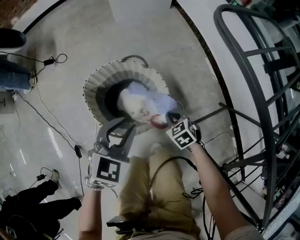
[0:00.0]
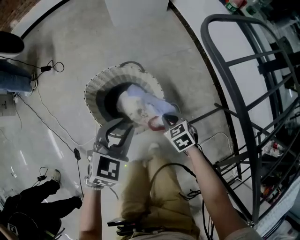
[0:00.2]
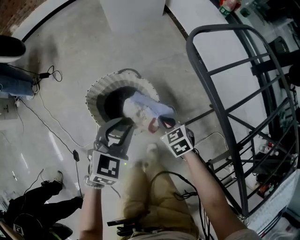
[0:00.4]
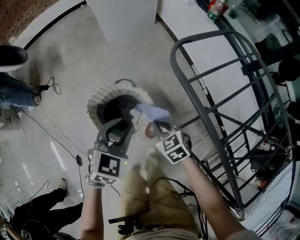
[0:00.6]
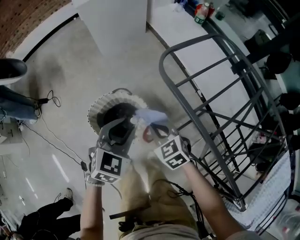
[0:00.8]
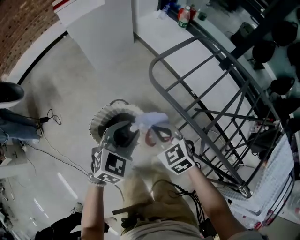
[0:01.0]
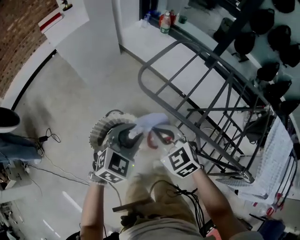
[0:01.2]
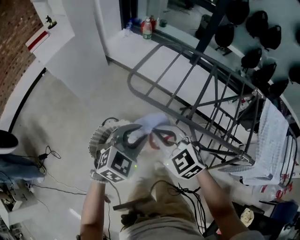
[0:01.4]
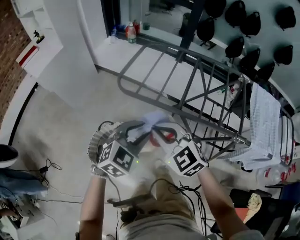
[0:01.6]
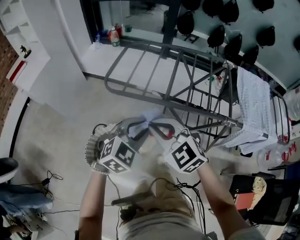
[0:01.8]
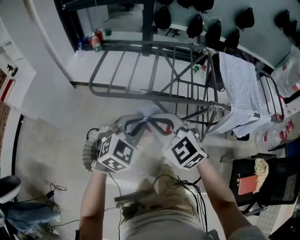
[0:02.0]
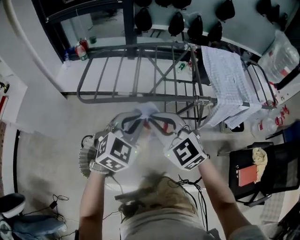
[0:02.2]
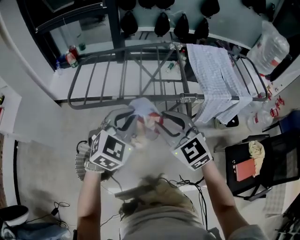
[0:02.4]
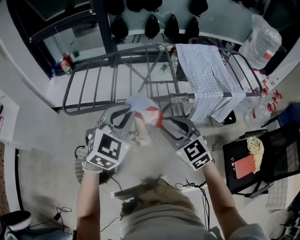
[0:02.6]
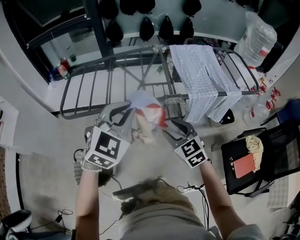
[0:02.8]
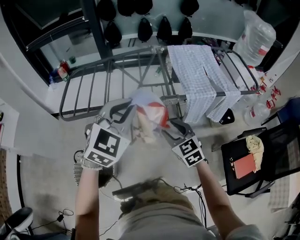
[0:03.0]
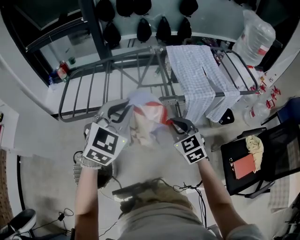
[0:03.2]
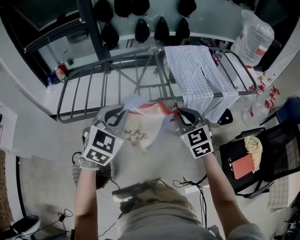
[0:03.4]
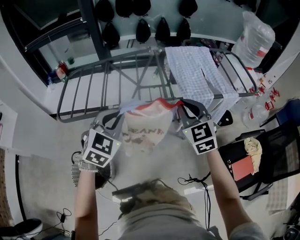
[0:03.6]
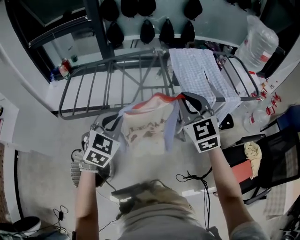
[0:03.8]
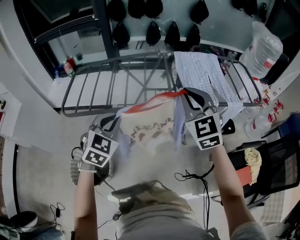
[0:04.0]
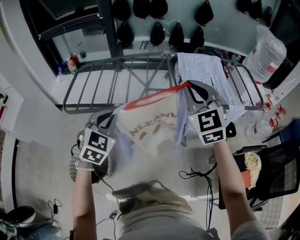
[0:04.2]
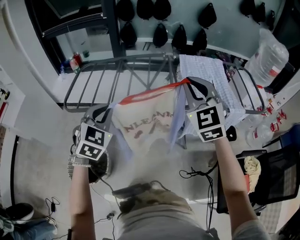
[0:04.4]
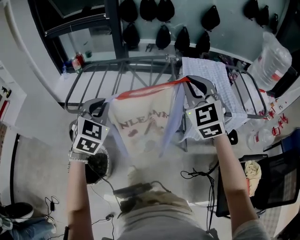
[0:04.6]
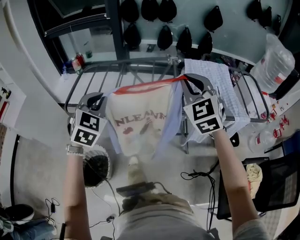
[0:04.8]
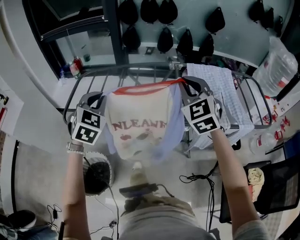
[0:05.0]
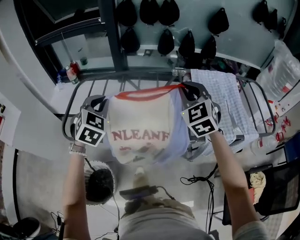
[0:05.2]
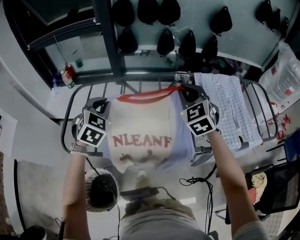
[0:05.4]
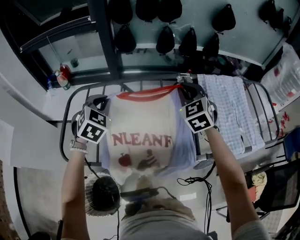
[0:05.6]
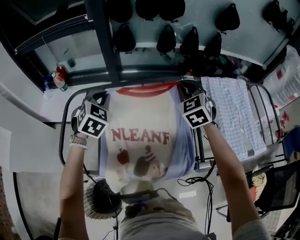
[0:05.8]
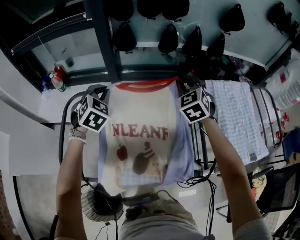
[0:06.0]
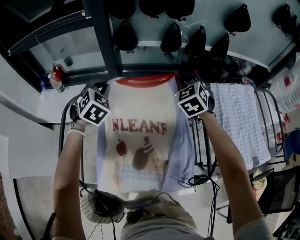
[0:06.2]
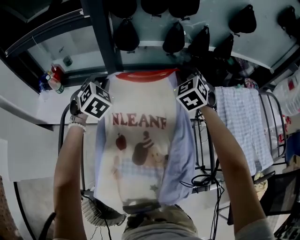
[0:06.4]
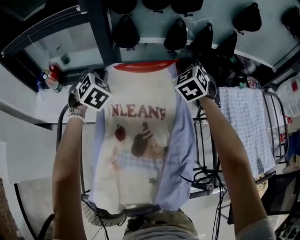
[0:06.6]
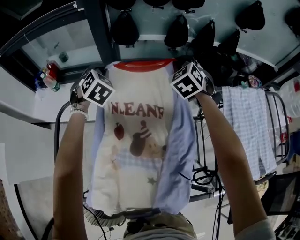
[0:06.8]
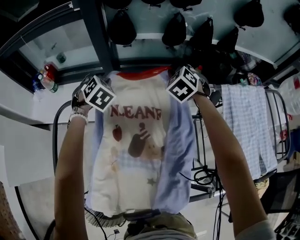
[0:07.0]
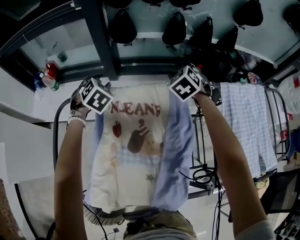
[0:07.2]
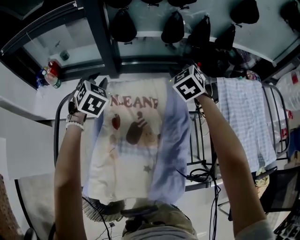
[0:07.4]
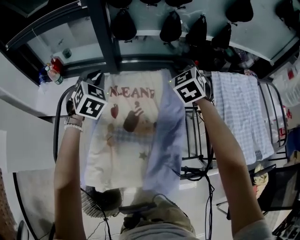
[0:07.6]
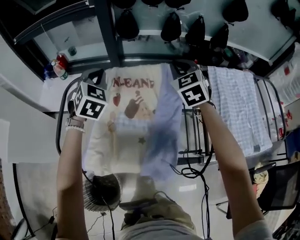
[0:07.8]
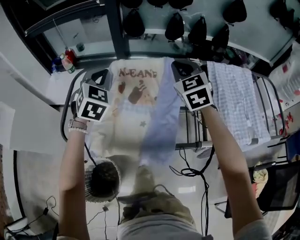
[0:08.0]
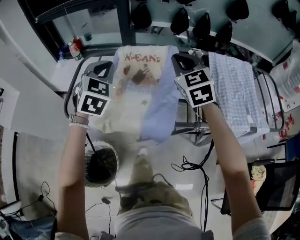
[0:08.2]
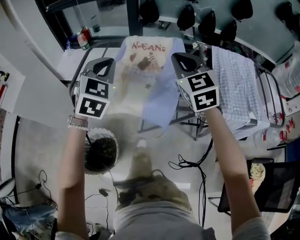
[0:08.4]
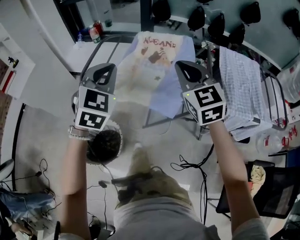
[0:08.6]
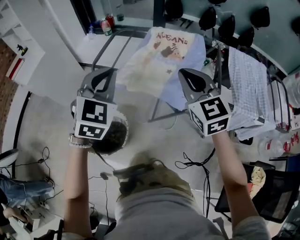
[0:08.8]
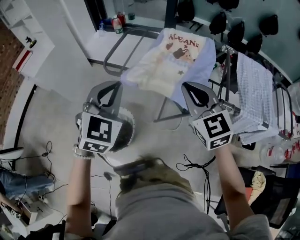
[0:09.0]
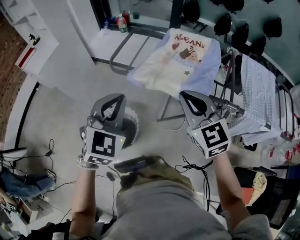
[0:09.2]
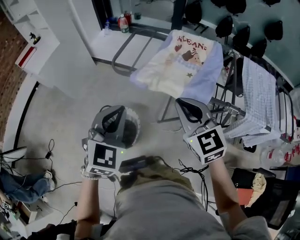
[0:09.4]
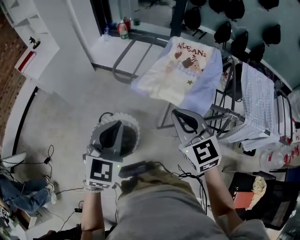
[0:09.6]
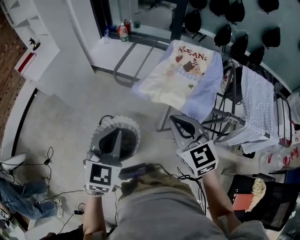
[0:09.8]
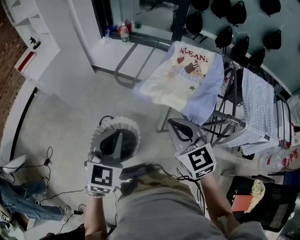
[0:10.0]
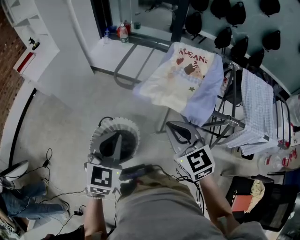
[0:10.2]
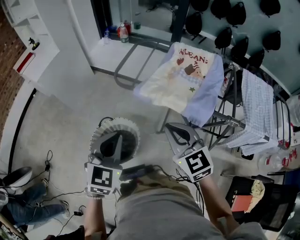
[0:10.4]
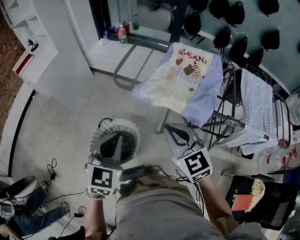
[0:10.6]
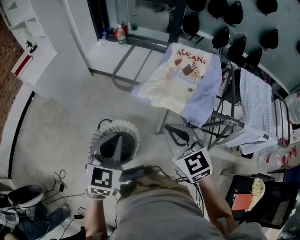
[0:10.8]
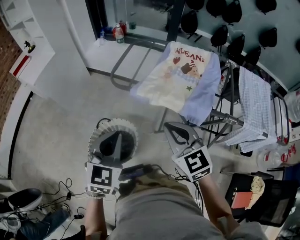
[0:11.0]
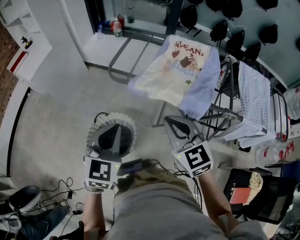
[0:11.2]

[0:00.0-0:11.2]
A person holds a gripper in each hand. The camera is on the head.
0:00.0 to 0:01.6: The left gripper heads upward, covering about 30 cm, and turns by some 60 degrees. Meanwhile the right gripper moves upward, approximately 50 cm, and tips its fingers upward by roughly 30 degrees.
0:01.6 to 0:03.2: The right gripper moves about 5 cm upward and comes back, rotates approximately 50 degrees, and opens, then closes again. Meanwhile the left gripper shifts by approximately 30 cm, changes its angle by some 20 degrees, and closes.
0:03.2 to 0:04.8: The right gripper is displaced upward and forward by about 25 cm, and rotates some 30 degrees. Meanwhile the left gripper goes about 15 cm to the left and forward, and turns by some 30 degrees.
0:04.8 to 0:06.4: The pair of grippers is taken forward, approximately 50 cm. The right gripper turns by some 20 degrees.
0:06.4 to 0:08.0: Both grippers move backward, roughly 20 cm. The right gripper swivels roughly 20 degrees, and opens, then closes once more, while the left gripper opens, then closes once more.
0:08.0 to 0:09.6: The pair of grippers is taken backward and to the left, roughly 50 cm. The right gripper changes its angle by about 30 degrees; the left gripper swivels some 20 degrees.
0:09.6 to 0:11.2: The grippers move only a little.

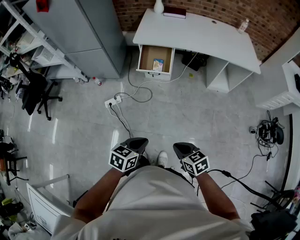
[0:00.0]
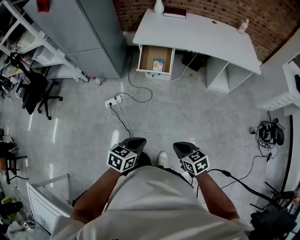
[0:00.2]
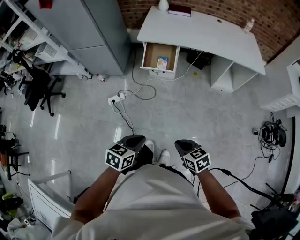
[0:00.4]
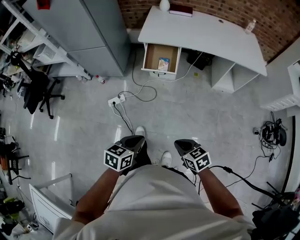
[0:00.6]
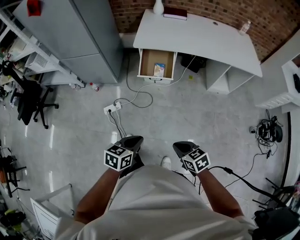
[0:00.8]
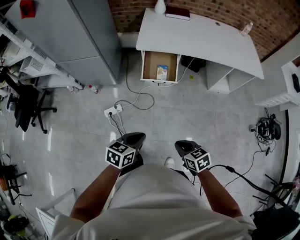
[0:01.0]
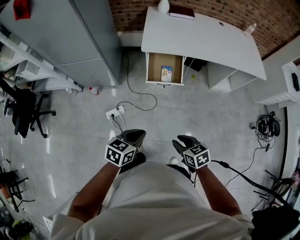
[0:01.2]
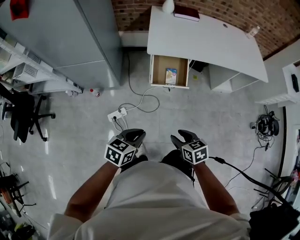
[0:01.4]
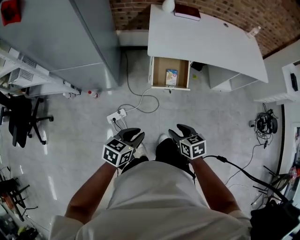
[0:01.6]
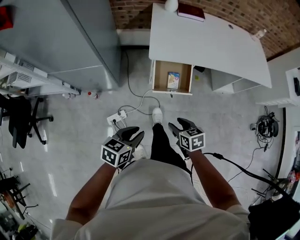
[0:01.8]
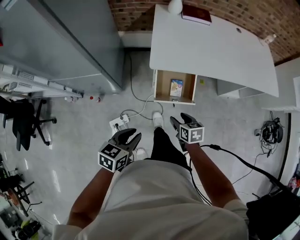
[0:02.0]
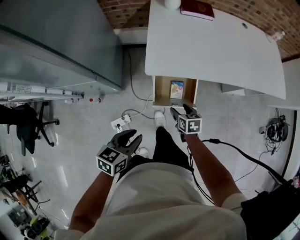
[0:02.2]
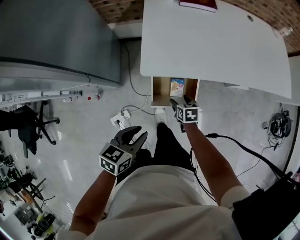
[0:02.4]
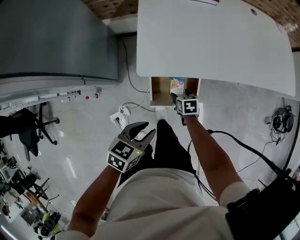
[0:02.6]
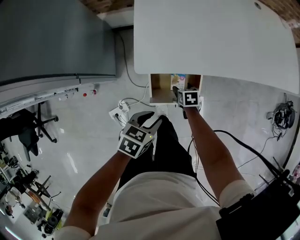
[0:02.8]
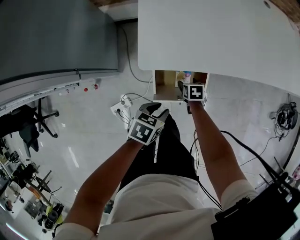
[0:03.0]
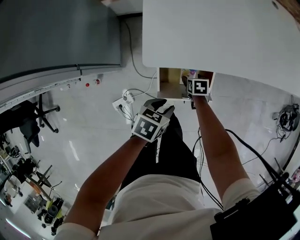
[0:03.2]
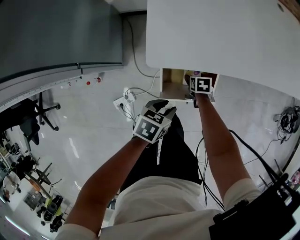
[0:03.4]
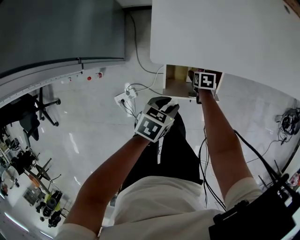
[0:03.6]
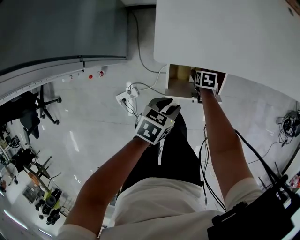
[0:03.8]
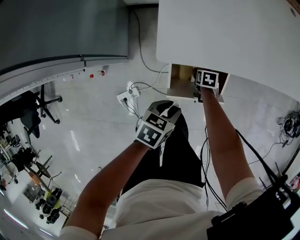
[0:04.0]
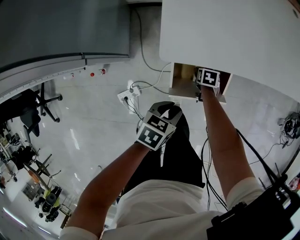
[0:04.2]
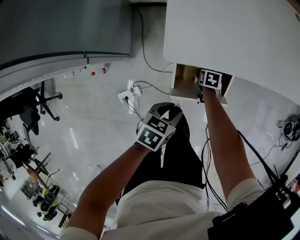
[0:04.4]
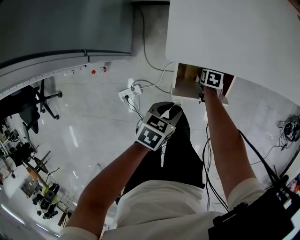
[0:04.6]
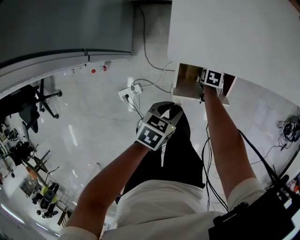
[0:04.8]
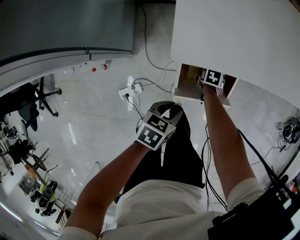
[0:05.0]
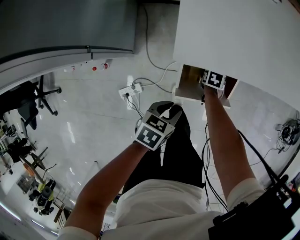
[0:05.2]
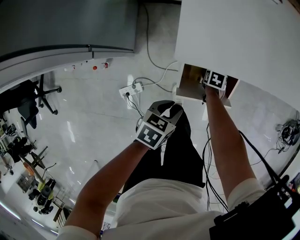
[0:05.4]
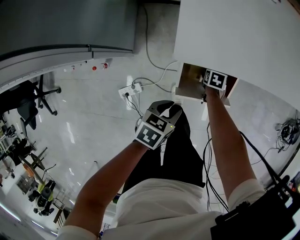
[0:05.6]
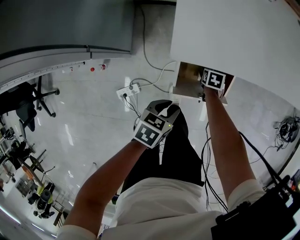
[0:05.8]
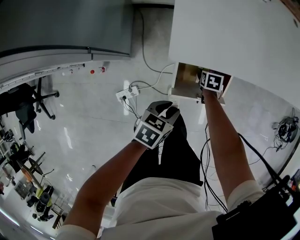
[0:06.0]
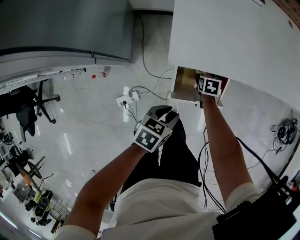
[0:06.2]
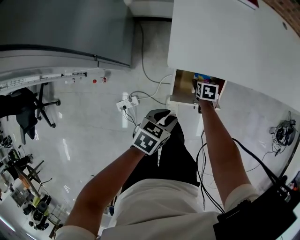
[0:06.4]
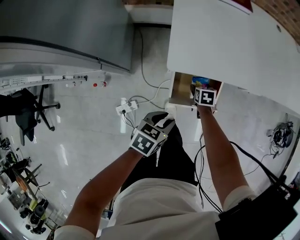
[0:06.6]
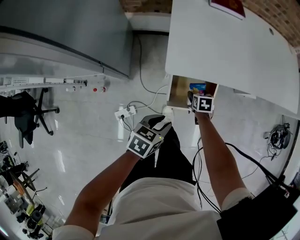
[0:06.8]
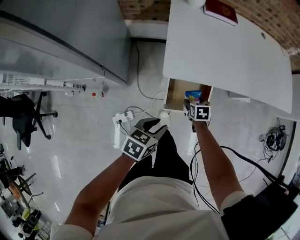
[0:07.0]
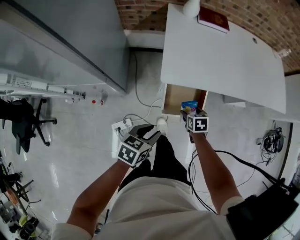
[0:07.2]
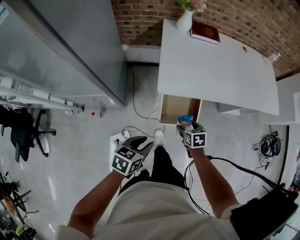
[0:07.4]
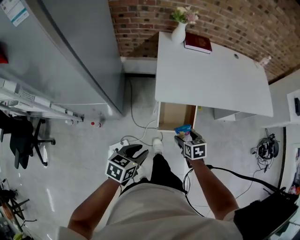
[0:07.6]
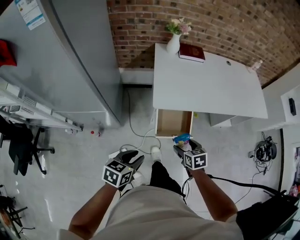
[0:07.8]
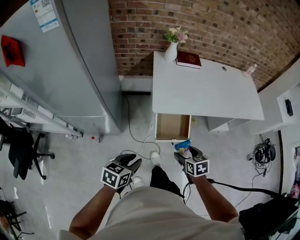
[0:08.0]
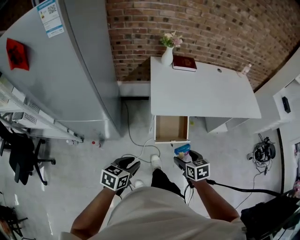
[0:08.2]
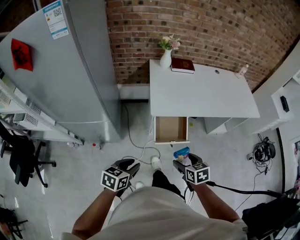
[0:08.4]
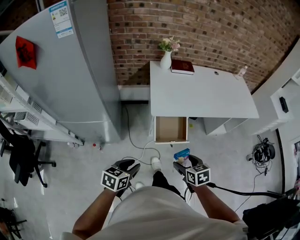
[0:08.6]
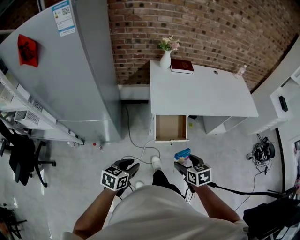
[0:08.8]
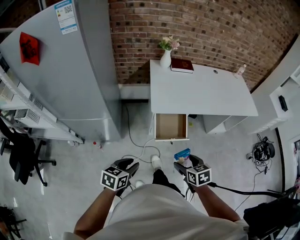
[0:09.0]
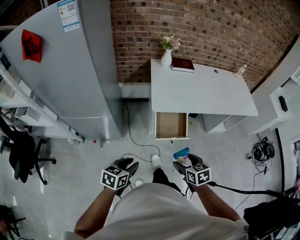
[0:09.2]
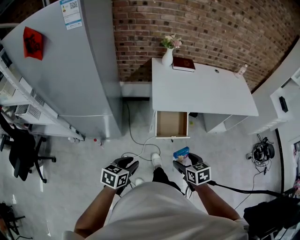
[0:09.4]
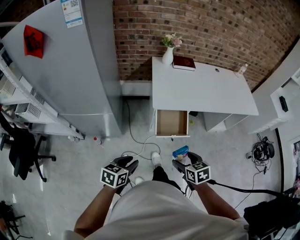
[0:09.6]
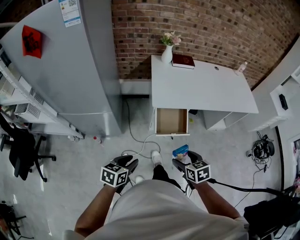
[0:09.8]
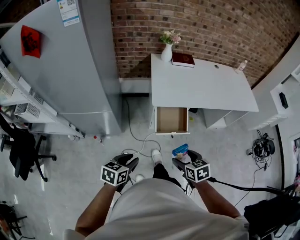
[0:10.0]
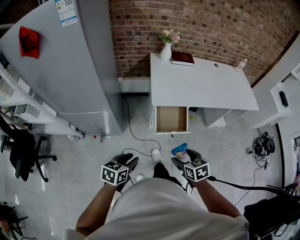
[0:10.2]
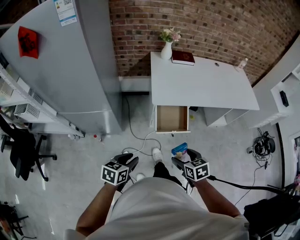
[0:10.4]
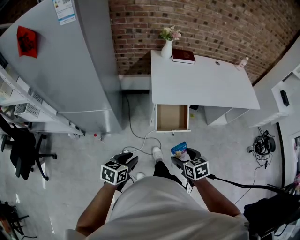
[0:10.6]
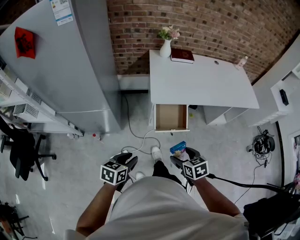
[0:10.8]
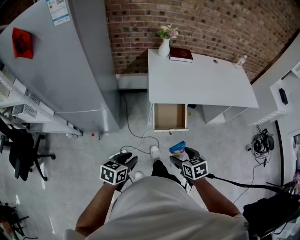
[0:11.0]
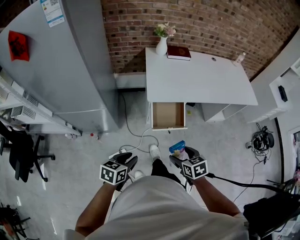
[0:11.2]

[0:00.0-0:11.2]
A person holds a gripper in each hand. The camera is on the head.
0:00.0 to 0:01.6: The pair of grippers is taken forward and to the left, approximately 40 cm. The right gripper opens its fingers.
0:01.6 to 0:03.2: Both grippers are carried forward, roughly 40 cm. The right gripper goes some 35 cm downward, and turns by some 30 degrees, while the left gripper goes about 25 cm downward.
0:03.2 to 0:04.8: The left gripper ends up about 5 cm from where it was. The right gripper is displaced downward by some 5 cm.
0:04.8 to 0:06.4: The left gripper shifts some 5 cm upward. The right gripper travels upward by some 10 cm.
0:06.4 to 0:08.0: The left gripper heads upward, backward and to the left, covering roughly 30 cm; the right gripper heads upward and backward, covering roughly 50 cm.
0:08.0 to 0:09.6: The grippers both shift backward by roughly 10 cm.
0:09.6 to 0:11.2: There are only small adjustments of the grippers.

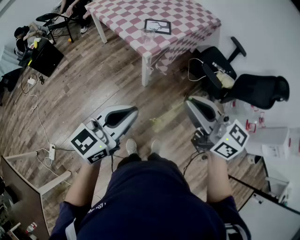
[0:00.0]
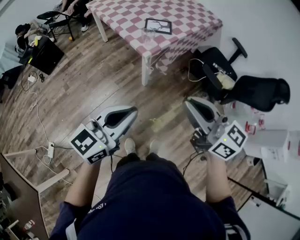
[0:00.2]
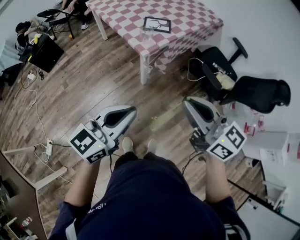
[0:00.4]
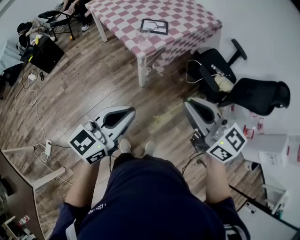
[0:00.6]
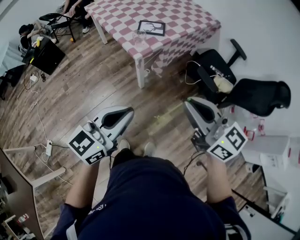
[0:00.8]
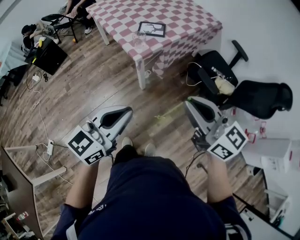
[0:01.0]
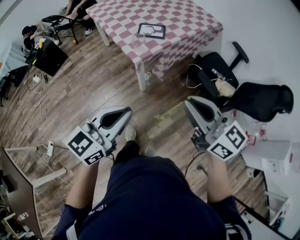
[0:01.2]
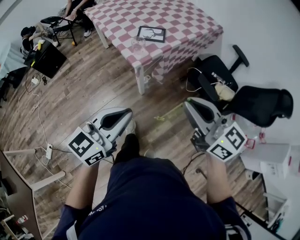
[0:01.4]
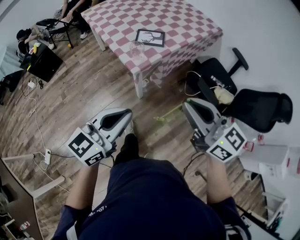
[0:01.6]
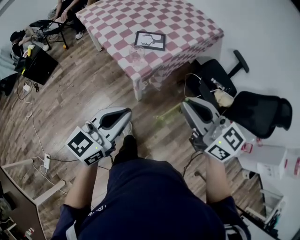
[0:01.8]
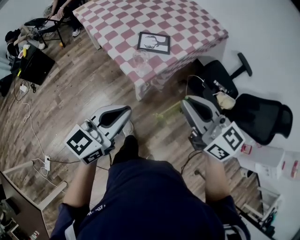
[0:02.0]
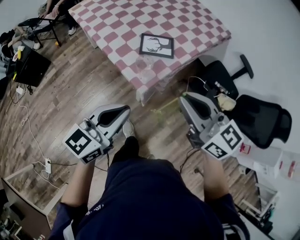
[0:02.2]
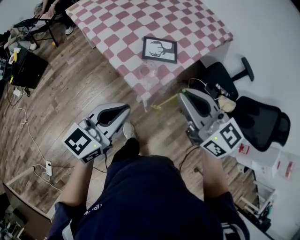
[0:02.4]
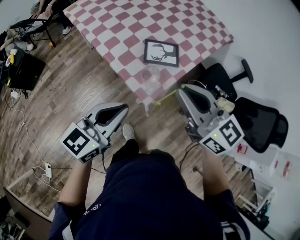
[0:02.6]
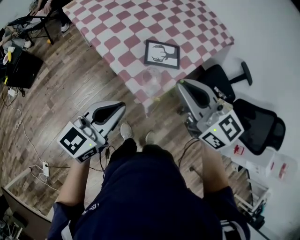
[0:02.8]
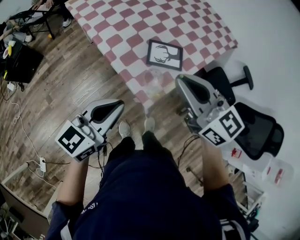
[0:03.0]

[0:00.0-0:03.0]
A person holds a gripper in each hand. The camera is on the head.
0:00.0 to 0:01.6: The grippers both shift forward and to the right by roughly 15 cm.
0:01.6 to 0:03.0: Both grippers travel together forward and to the left, approximately 40 cm.
